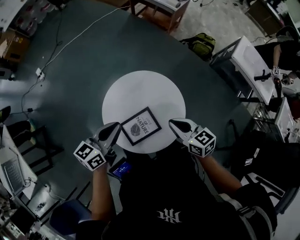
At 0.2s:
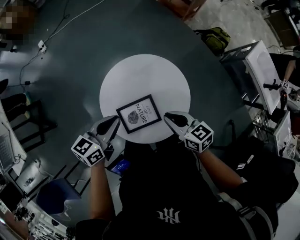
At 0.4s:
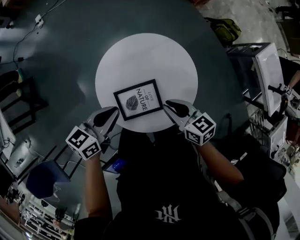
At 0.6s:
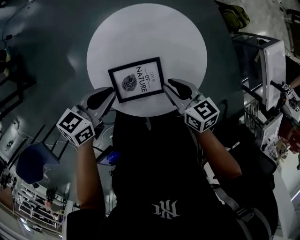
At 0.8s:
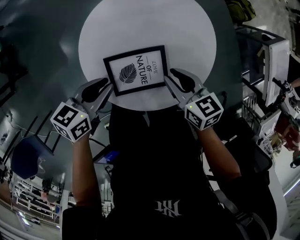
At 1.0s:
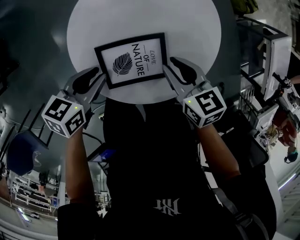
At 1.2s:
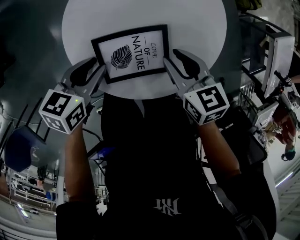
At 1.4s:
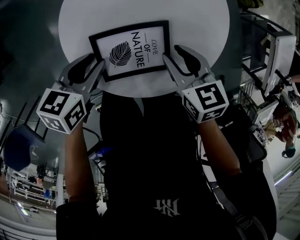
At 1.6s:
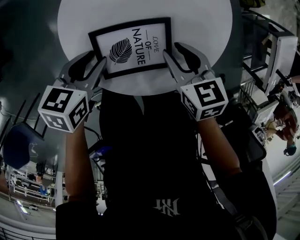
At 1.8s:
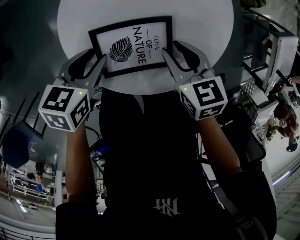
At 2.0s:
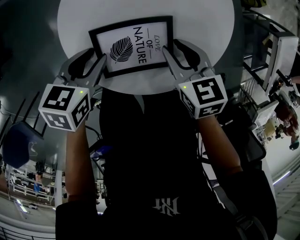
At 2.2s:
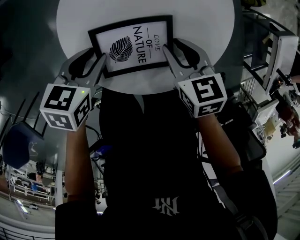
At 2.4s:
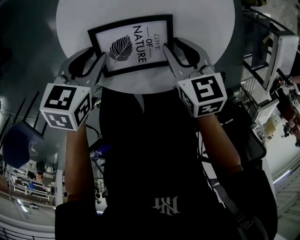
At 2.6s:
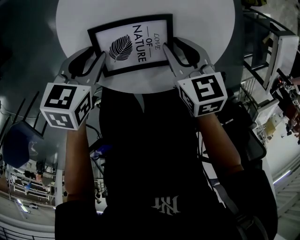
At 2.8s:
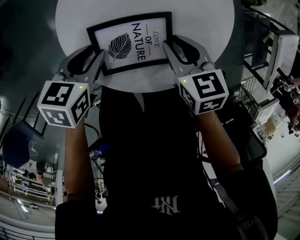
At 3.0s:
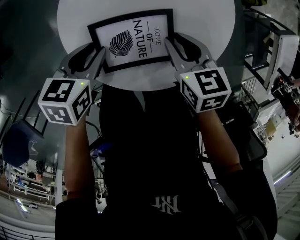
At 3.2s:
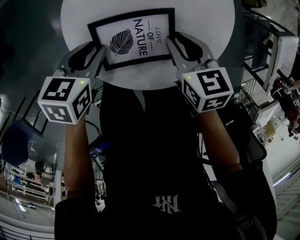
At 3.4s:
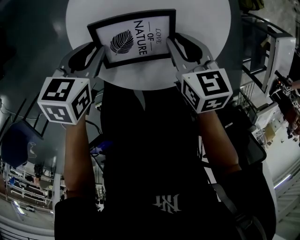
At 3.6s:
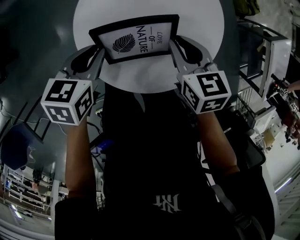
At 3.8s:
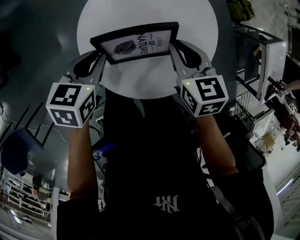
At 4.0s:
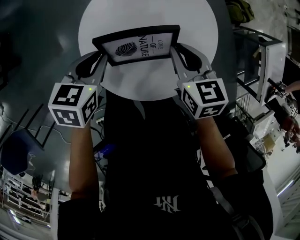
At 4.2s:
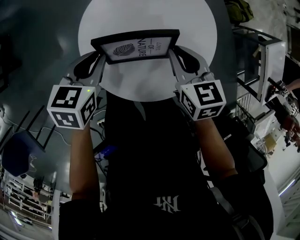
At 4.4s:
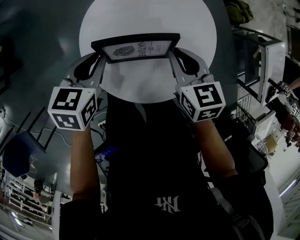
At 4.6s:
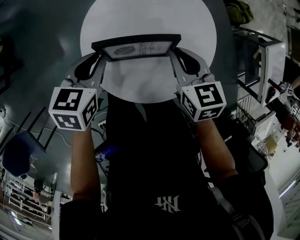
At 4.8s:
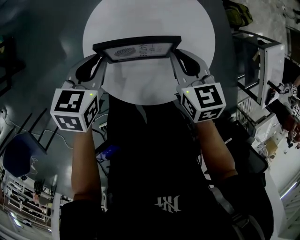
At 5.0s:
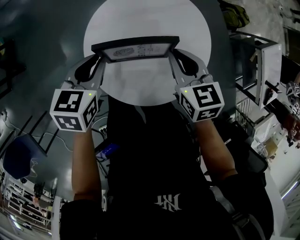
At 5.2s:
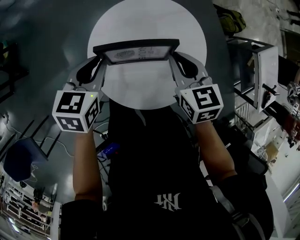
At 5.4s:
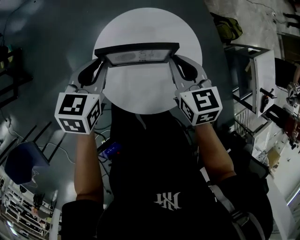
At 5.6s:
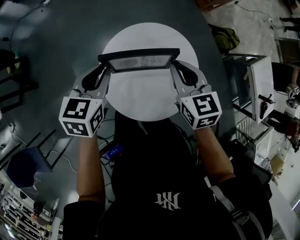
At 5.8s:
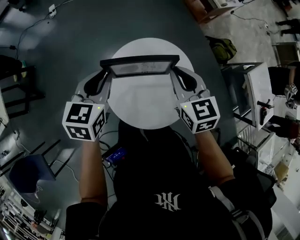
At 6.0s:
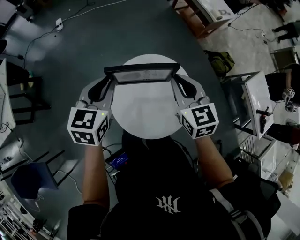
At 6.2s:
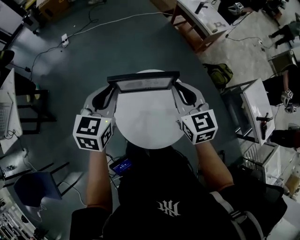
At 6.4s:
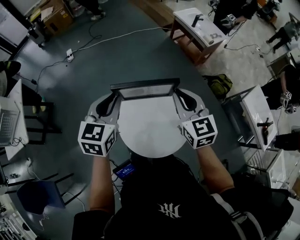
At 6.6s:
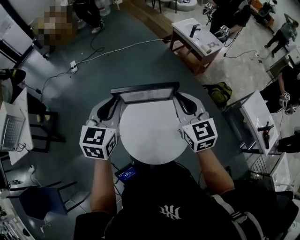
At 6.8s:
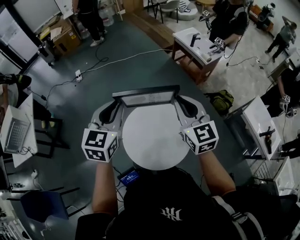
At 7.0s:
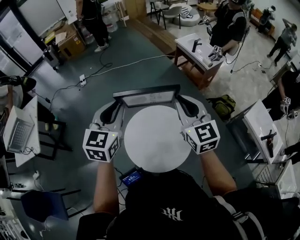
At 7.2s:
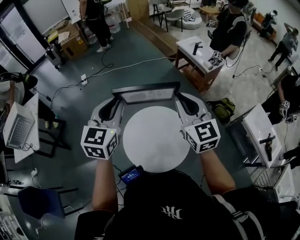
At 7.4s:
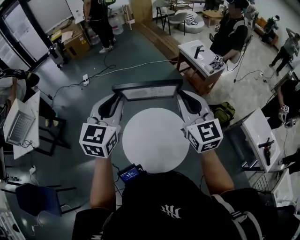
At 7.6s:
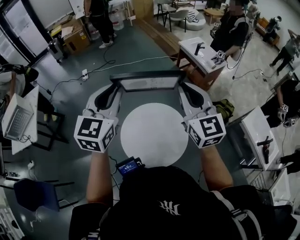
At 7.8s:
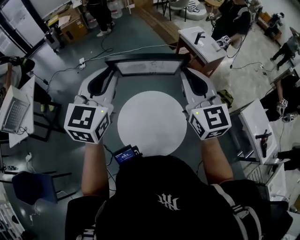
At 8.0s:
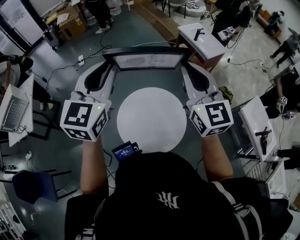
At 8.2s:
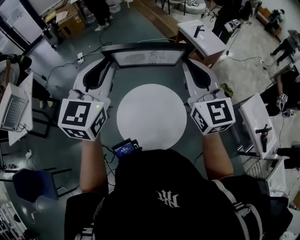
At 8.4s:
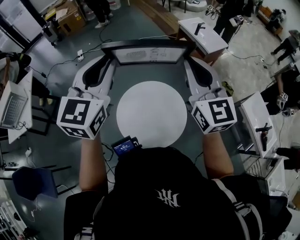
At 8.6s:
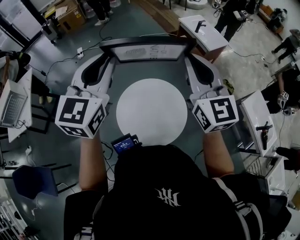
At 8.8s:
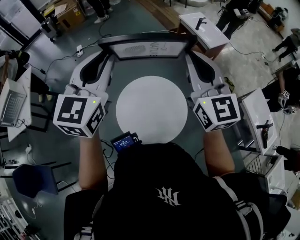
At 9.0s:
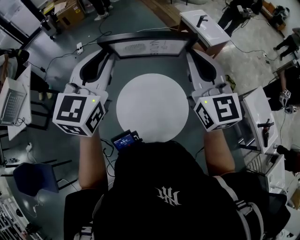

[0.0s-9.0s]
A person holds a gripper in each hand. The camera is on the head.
0.0s to 1.6s: The grippers both shift downward by some 25 cm. The left gripper tilts its fingers approximately 30 degrees downward, and opens up. Meanwhile the right gripper changes its angle by some 30 degrees, and opens.
1.6s to 3.0s: The grippers stay close to where they were, moving slightly.
3.0s to 4.4s: Both grippers travel together upward, roughly 10 cm.
4.4s to 6.0s: Both grippers move upward, about 25 cm. The right gripper turns by some 20 degrees. The left gripper turns by approximately 30 degrees.
6.0s to 7.6s: The grippers both shift upward by roughly 25 cm. The left gripper rotates roughly 30 degrees, while the right gripper turns by about 30 degrees.
7.6s to 9.0s: The grippers make only small movements.

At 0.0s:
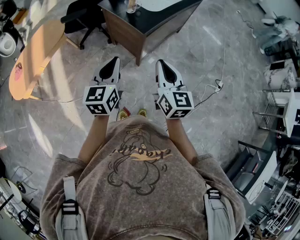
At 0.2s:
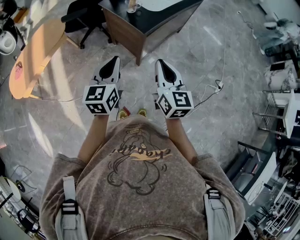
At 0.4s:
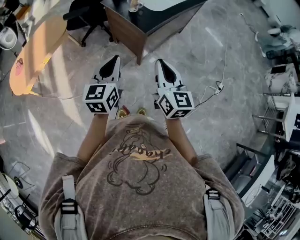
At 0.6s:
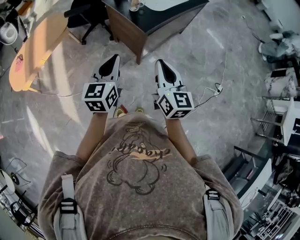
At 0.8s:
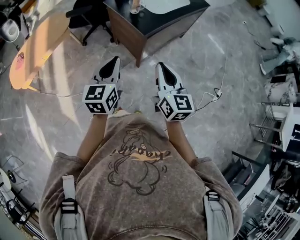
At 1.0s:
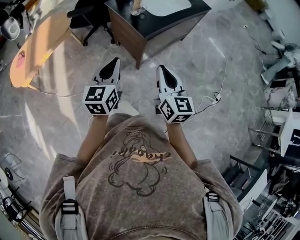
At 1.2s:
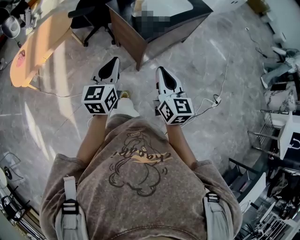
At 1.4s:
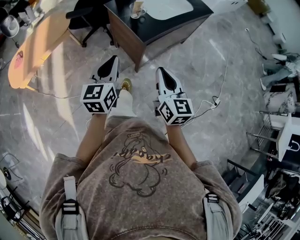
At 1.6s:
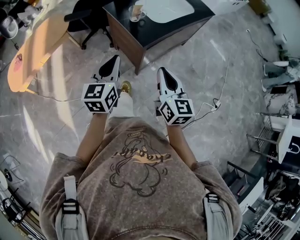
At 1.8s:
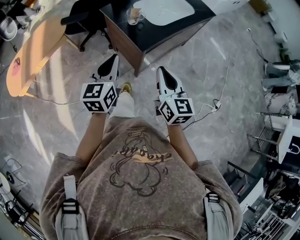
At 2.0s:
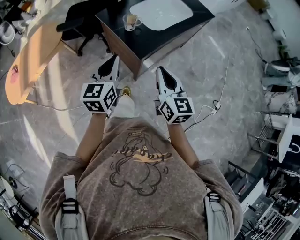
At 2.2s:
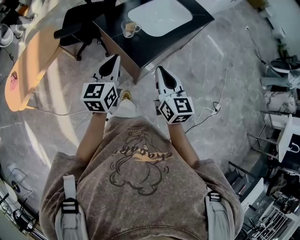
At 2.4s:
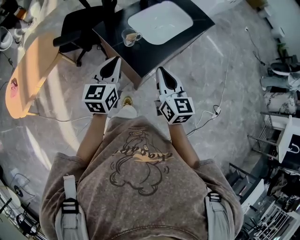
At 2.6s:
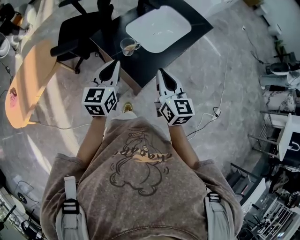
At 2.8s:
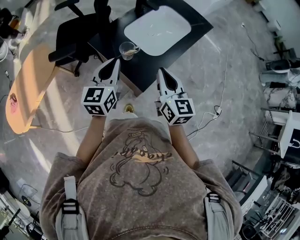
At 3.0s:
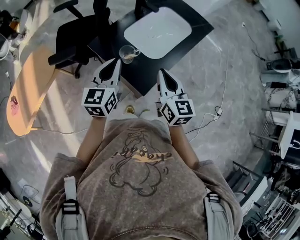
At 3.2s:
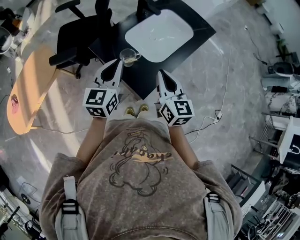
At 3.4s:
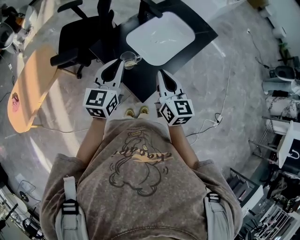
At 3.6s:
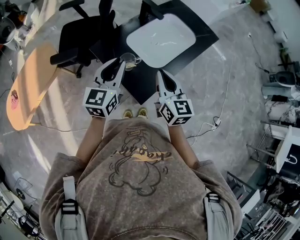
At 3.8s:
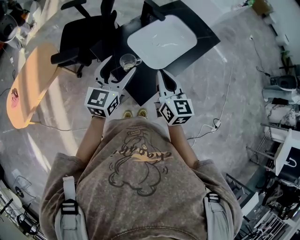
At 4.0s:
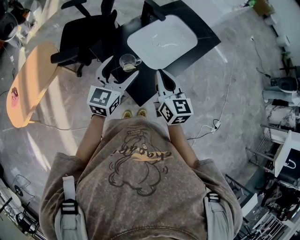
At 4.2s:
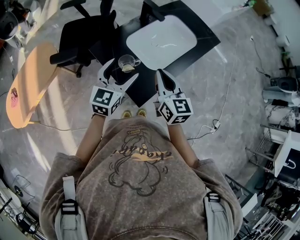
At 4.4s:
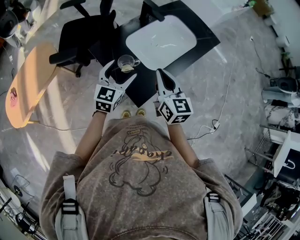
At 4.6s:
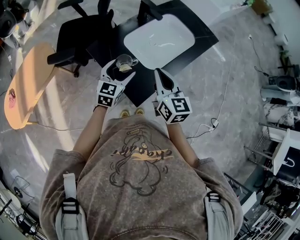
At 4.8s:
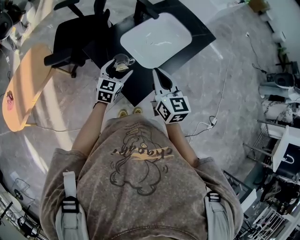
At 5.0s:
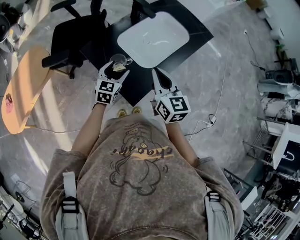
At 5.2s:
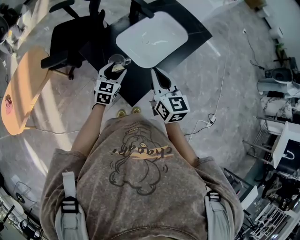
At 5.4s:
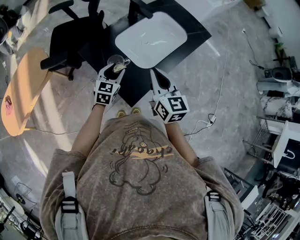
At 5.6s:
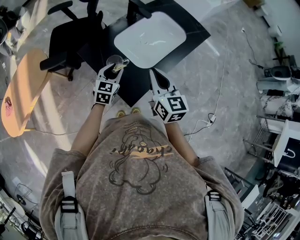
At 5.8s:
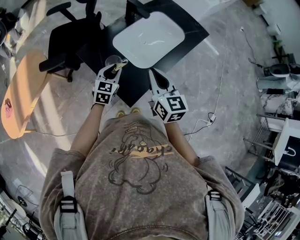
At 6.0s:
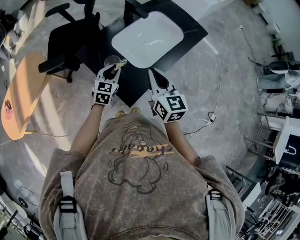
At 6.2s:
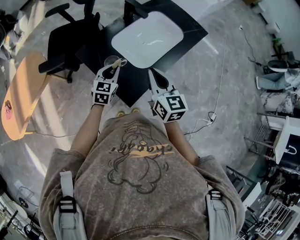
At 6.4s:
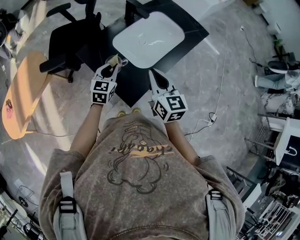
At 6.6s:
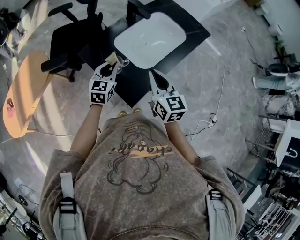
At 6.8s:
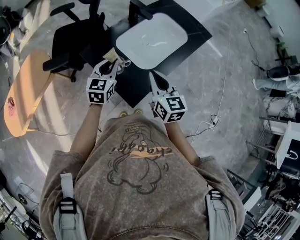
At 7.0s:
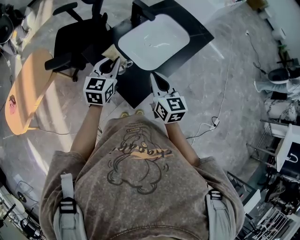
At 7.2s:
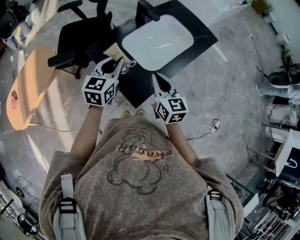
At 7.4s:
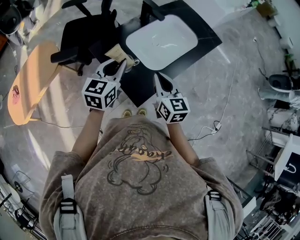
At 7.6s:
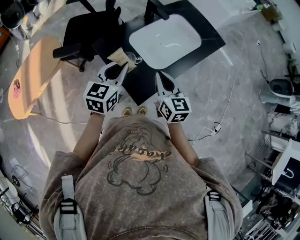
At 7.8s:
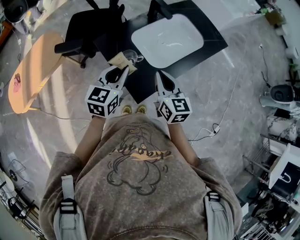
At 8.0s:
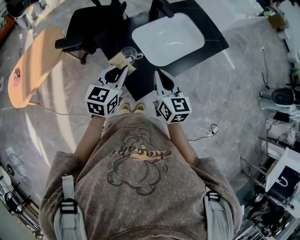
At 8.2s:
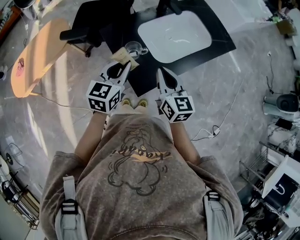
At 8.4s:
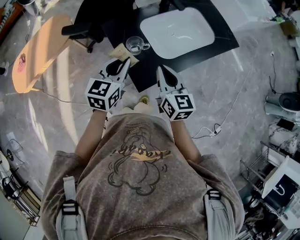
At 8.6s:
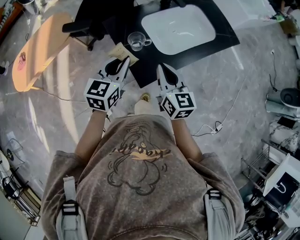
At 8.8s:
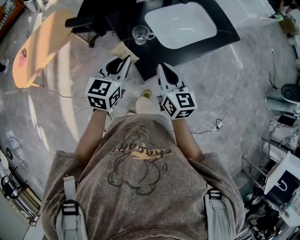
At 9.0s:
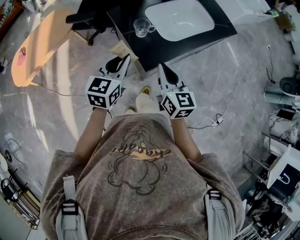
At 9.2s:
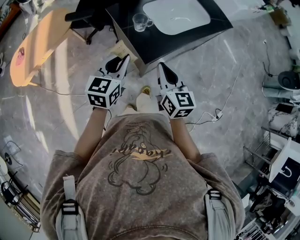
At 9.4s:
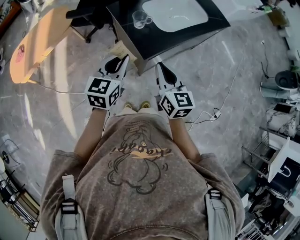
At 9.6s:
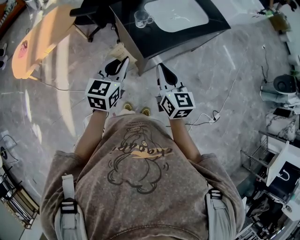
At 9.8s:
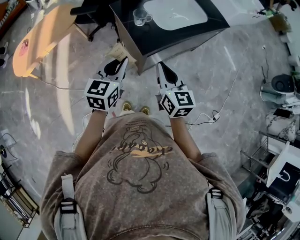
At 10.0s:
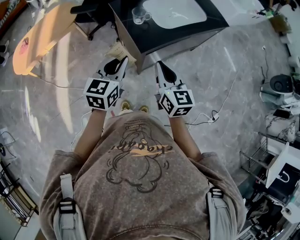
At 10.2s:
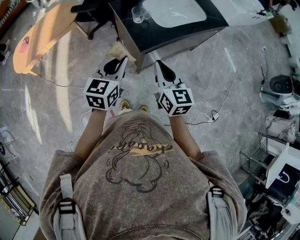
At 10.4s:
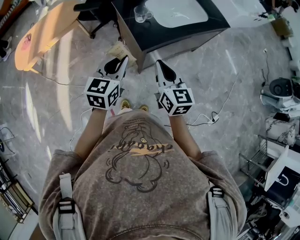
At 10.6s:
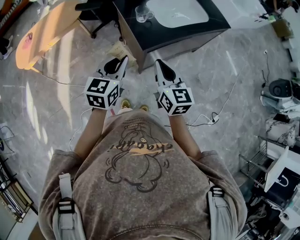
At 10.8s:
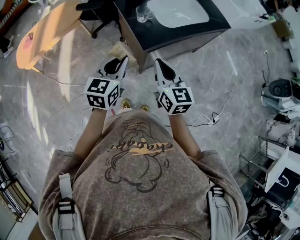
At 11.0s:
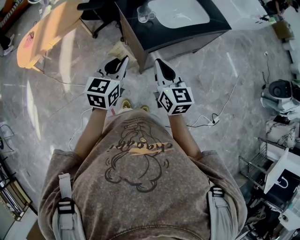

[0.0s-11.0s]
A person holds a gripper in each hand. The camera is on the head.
0.0s to 1.6s: Both grippers travel together forward, roughly 10 cm.
1.6s to 3.2s: Both grippers move forward, approximately 30 cm.
3.2s to 4.8s: The left gripper travels downward and forward by roughly 15 cm, and opens, while the right gripper ends up about 5 cm from where it was.
4.8s to 6.2s: The left gripper closes up.
6.2s to 7.8s: The left gripper heads upward and backward, covering some 15 cm.
7.8s to 9.4s: Both grippers travel together backward, about 20 cm.
9.4s to 11.0s: Both grippers move backward, about 5 cm.

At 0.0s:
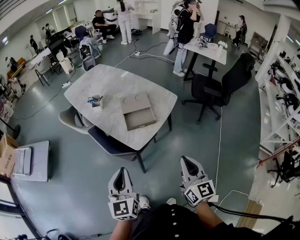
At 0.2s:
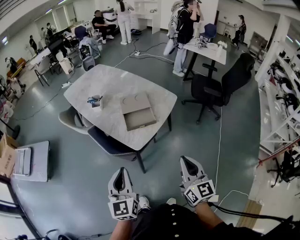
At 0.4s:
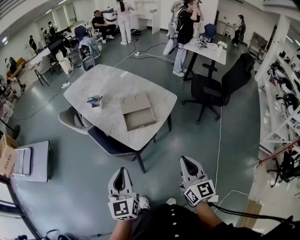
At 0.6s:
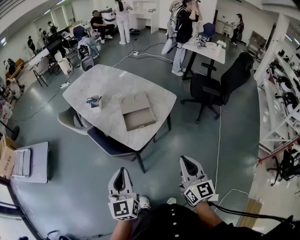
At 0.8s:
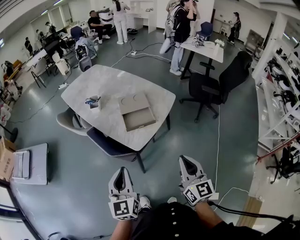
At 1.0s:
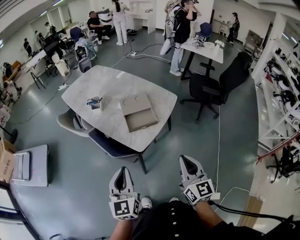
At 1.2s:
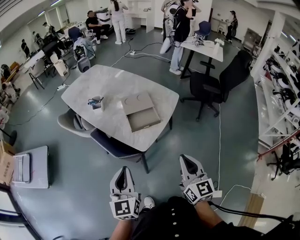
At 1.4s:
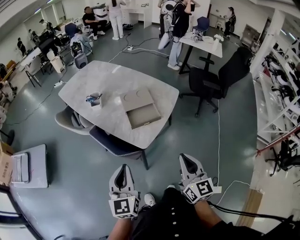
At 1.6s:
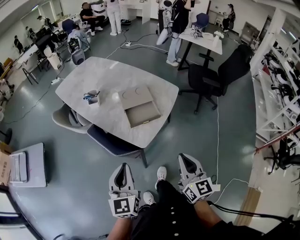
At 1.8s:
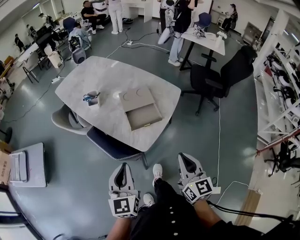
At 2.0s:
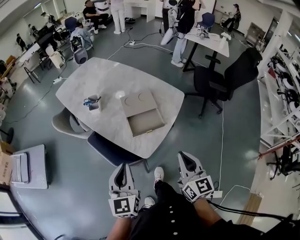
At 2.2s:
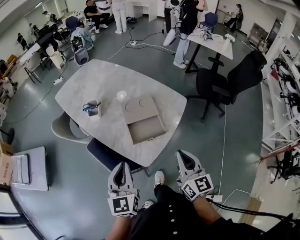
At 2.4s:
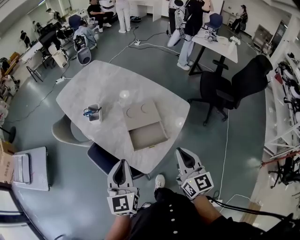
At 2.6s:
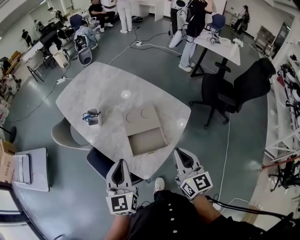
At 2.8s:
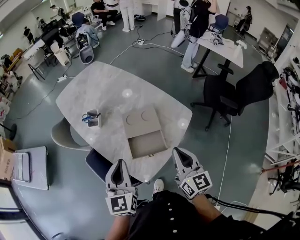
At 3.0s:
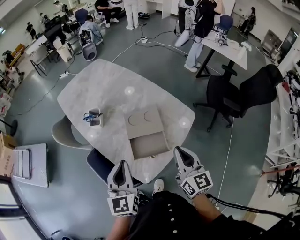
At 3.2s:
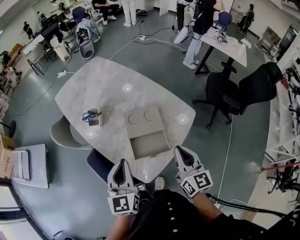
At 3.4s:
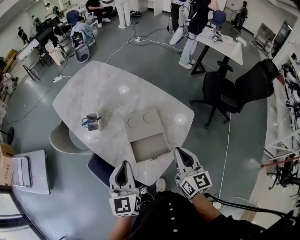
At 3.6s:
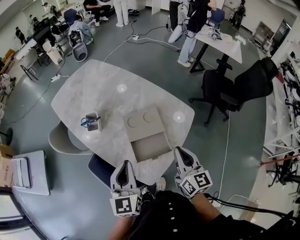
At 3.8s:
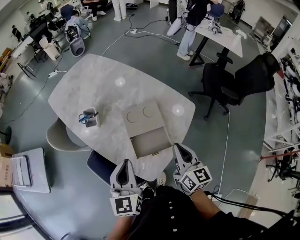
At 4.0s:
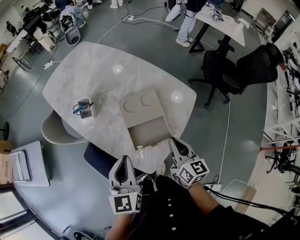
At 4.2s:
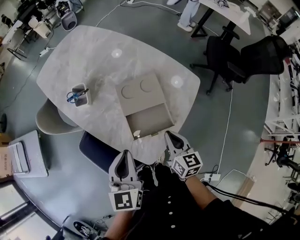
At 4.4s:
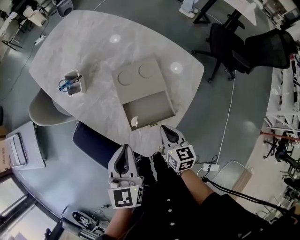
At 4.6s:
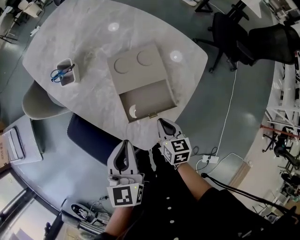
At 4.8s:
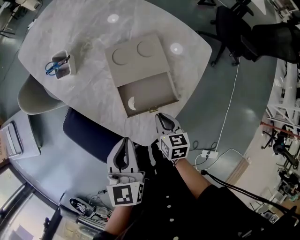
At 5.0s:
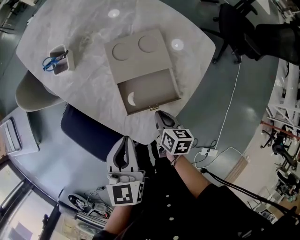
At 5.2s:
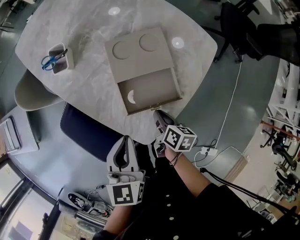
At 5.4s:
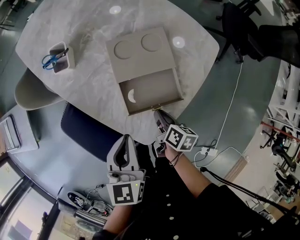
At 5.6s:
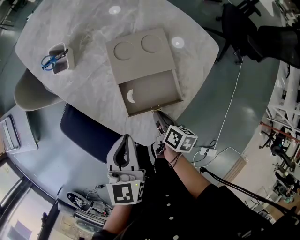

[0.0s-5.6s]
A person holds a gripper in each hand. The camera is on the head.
0.0s to 1.4s: Both grippers travel together to the left, roughly 5 cm.
1.4s to 2.8s: The two grippers go some 30 cm forward.
2.8s to 4.2s: The left gripper goes about 10 cm downward. The right gripper is displaced downward by some 15 cm, and changes its angle by some 20 degrees.
4.2s to 5.6s: The right gripper travels downward by some 20 cm, and changes its angle by some 40 degrees, while the left gripper heads downward, covering about 10 cm.
